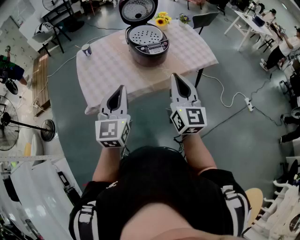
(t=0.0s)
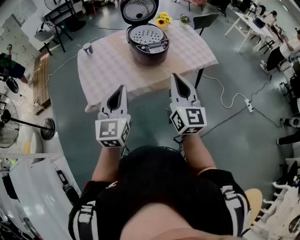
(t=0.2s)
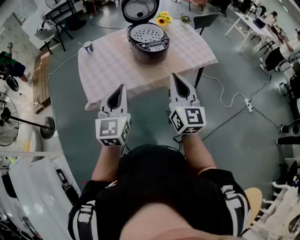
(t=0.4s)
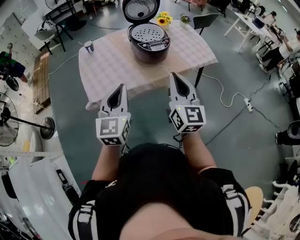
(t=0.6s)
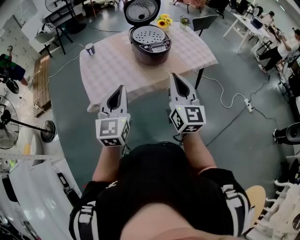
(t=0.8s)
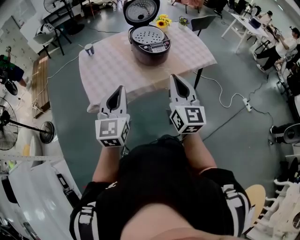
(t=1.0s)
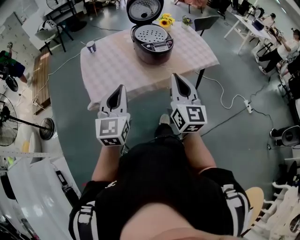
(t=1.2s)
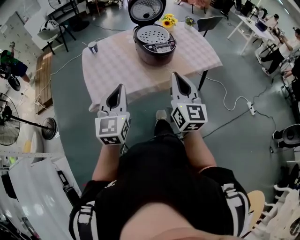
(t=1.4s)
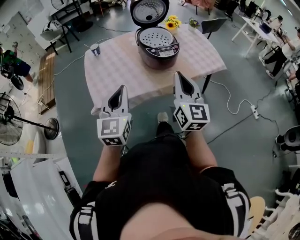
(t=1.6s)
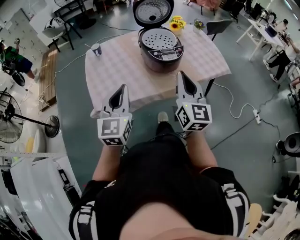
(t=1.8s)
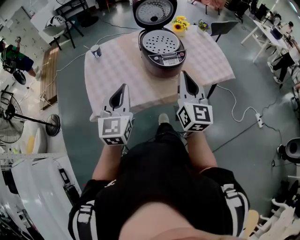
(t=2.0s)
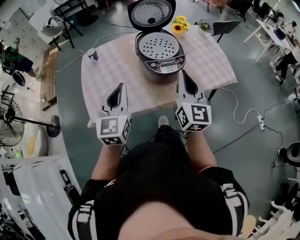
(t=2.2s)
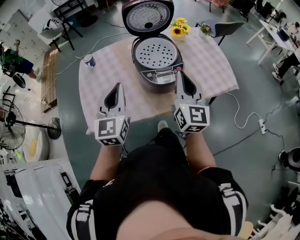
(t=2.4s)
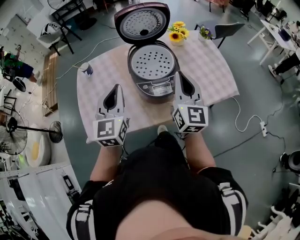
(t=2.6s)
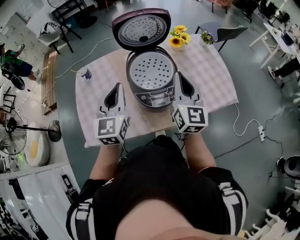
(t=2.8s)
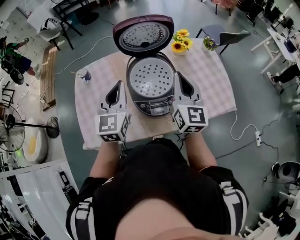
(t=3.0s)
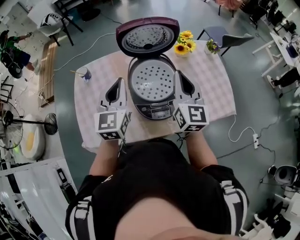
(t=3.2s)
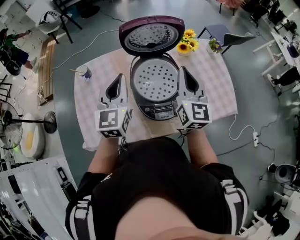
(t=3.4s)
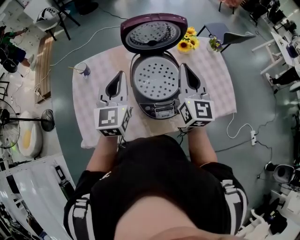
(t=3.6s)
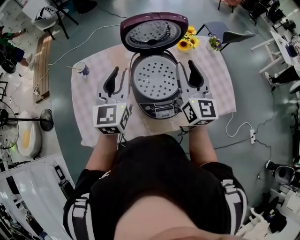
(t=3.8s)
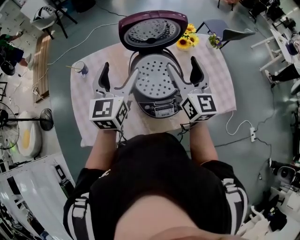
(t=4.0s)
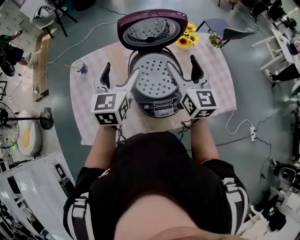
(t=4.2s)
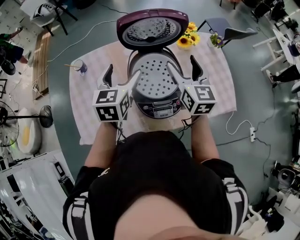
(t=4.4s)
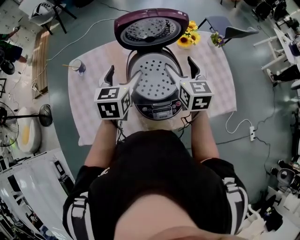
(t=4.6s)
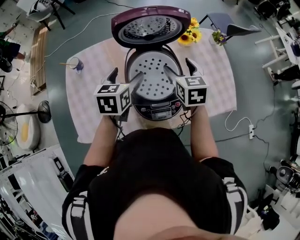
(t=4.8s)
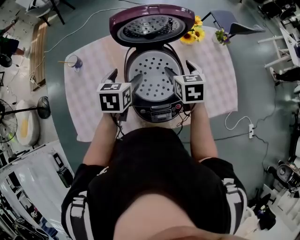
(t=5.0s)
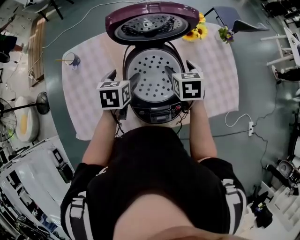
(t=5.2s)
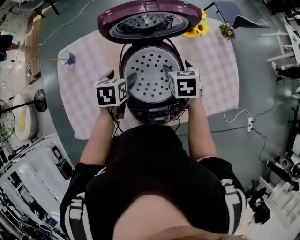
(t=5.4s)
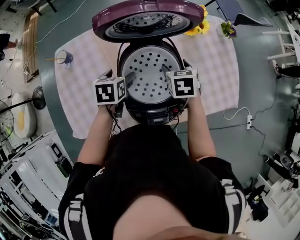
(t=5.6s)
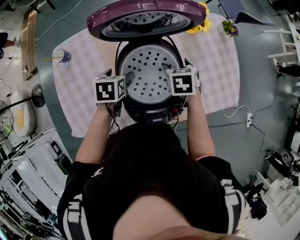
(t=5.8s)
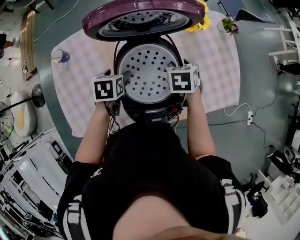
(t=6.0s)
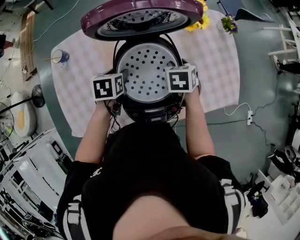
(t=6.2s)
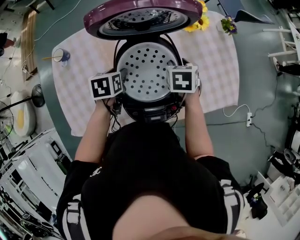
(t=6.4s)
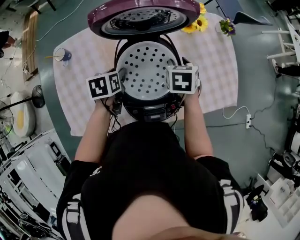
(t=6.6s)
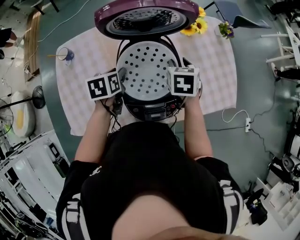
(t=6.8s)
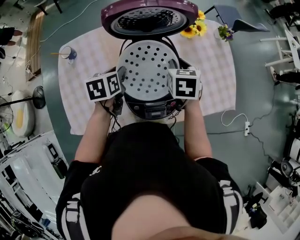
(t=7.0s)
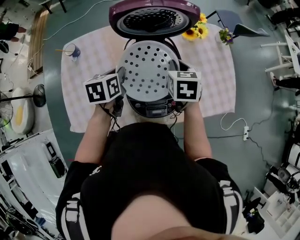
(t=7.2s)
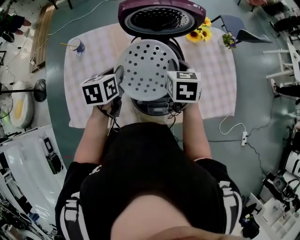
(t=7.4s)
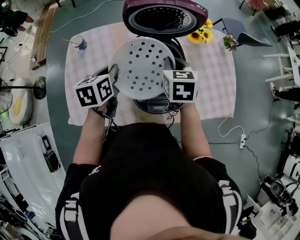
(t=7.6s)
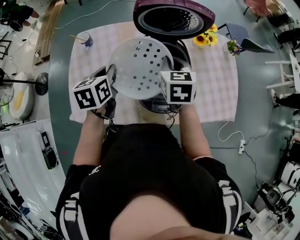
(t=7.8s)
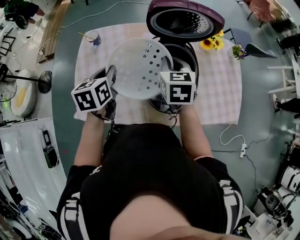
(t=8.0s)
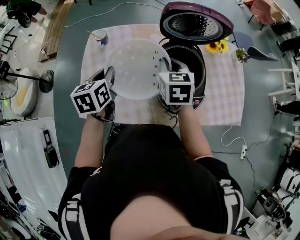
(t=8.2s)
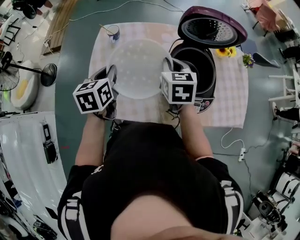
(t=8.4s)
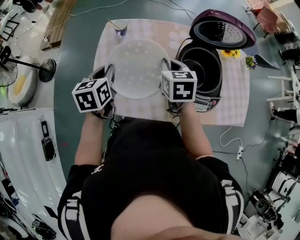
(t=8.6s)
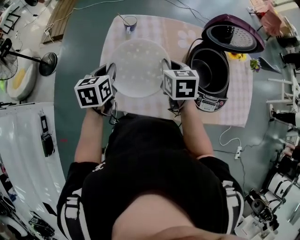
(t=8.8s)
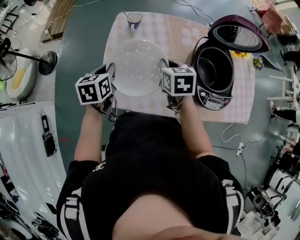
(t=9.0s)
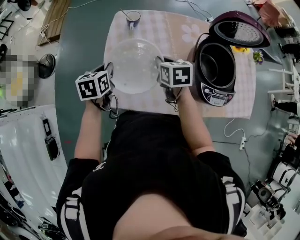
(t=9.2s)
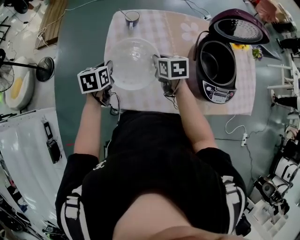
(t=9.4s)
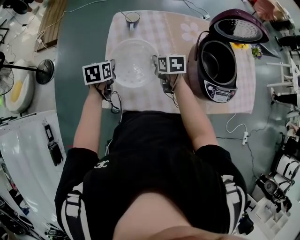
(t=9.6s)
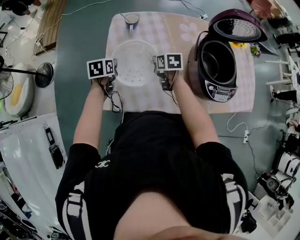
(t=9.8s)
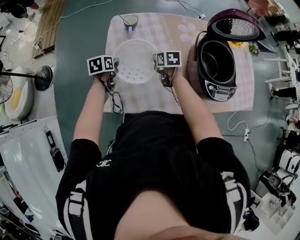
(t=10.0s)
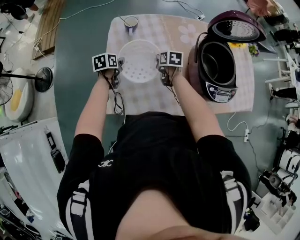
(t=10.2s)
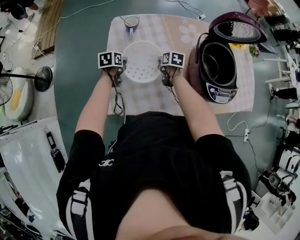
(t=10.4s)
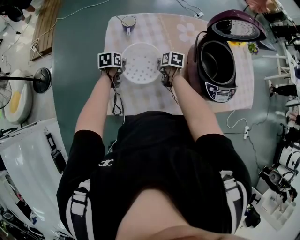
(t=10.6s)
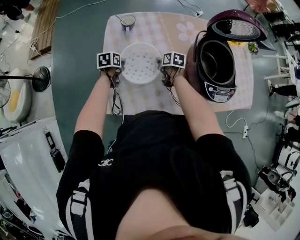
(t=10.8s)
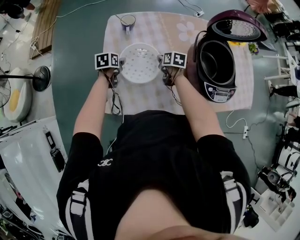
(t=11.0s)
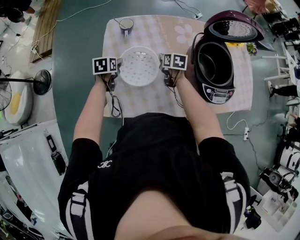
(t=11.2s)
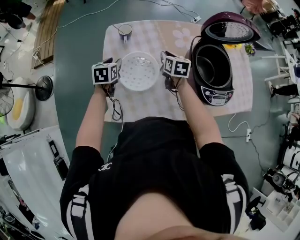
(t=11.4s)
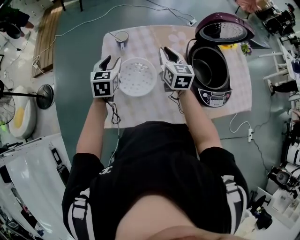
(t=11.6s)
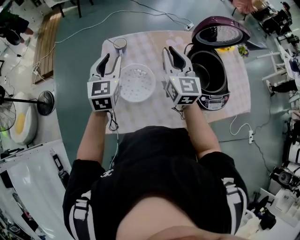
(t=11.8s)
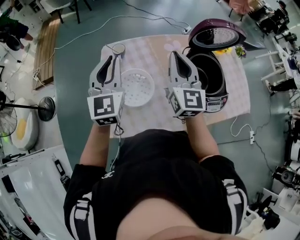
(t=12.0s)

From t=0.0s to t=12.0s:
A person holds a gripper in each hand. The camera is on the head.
From t=0.0s to t=1.6s: The grippers move only a little.
From t=1.6s to t=3.0s: The two grippers travel together, forward, roughly 40 cm.
From t=3.0s to t=4.4s: Both grippers travel together forward, about 10 cm. The right gripper opens up. The left gripper opens up.
From t=4.4s to t=6.0s: Both grippers travel together downward, approximately 20 cm. The right gripper tips its fingers downward by approximately 50 degrees, and closes up, while the left gripper tips its fingers downward by about 40 degrees.
From t=6.0s to t=7.6s: The right gripper shifts some 15 cm upward, to the left and backward, rotates roughly 20 degrees, and closes its fingers. The left gripper heads upward and backward, covering some 15 cm, changes its angle by approximately 30 degrees, and closes its fingers.
From t=7.6s to t=9.0s: The two grippers go some 35 cm to the left.
From t=9.0s to t=10.4s: The two grippers go about 20 cm downward and forward. The right gripper swivels about 30 degrees. Meanwhile the left gripper rotates roughly 20 degrees.
From t=10.4s to t=12.0s: Both grippers travel together upward, roughly 35 cm. The left gripper tilts its fingers roughly 50 degrees upward. The right gripper angles its fingers upward, by roughly 60 degrees.

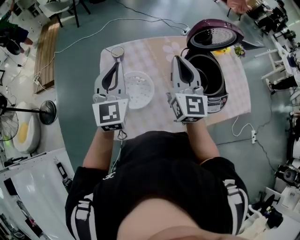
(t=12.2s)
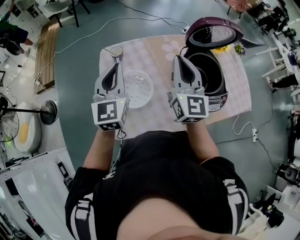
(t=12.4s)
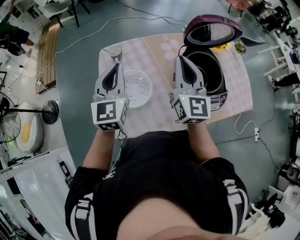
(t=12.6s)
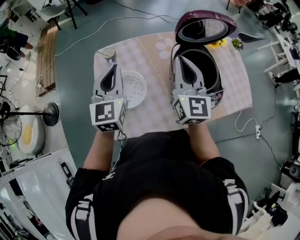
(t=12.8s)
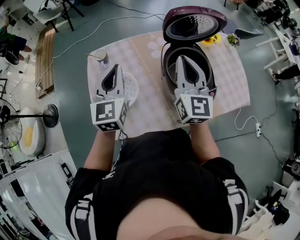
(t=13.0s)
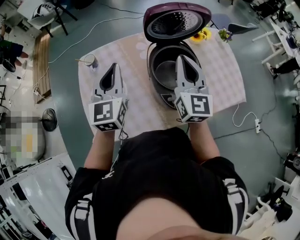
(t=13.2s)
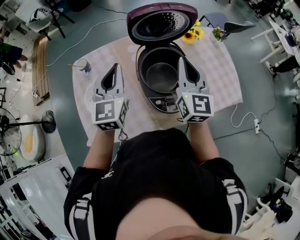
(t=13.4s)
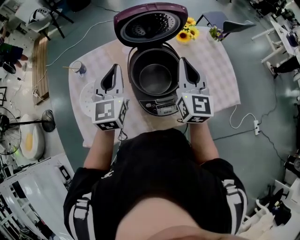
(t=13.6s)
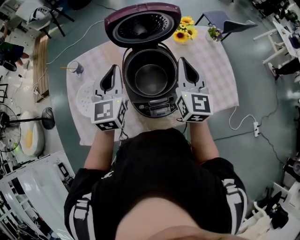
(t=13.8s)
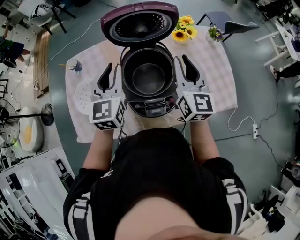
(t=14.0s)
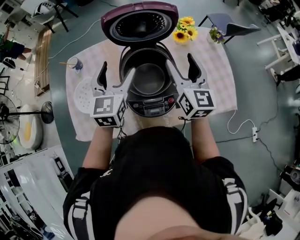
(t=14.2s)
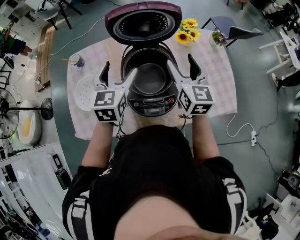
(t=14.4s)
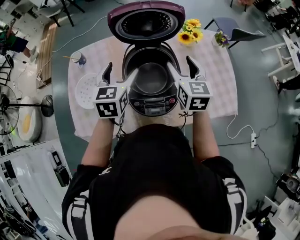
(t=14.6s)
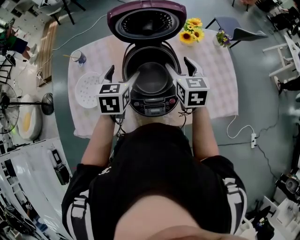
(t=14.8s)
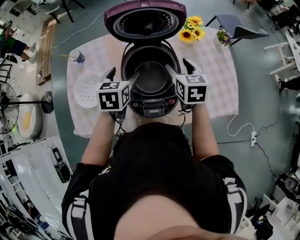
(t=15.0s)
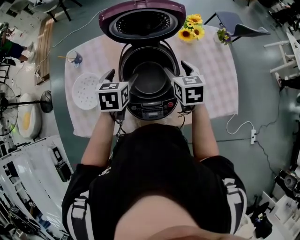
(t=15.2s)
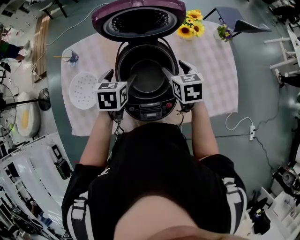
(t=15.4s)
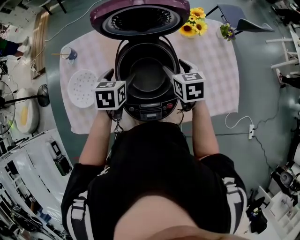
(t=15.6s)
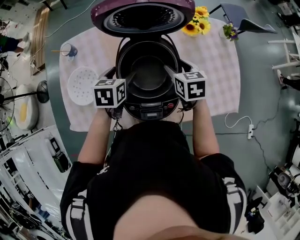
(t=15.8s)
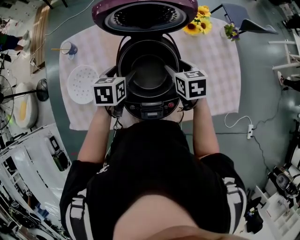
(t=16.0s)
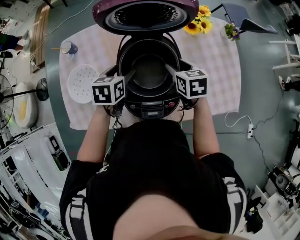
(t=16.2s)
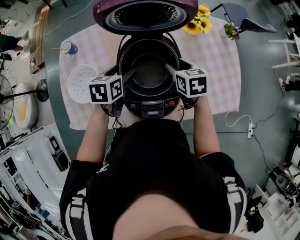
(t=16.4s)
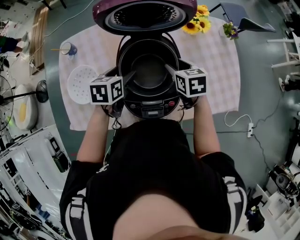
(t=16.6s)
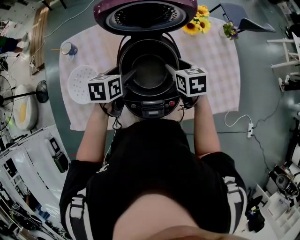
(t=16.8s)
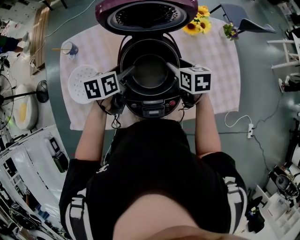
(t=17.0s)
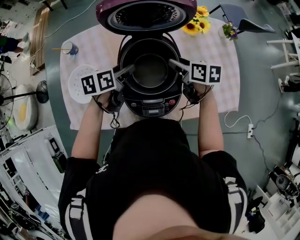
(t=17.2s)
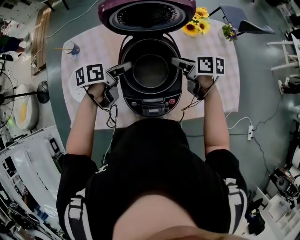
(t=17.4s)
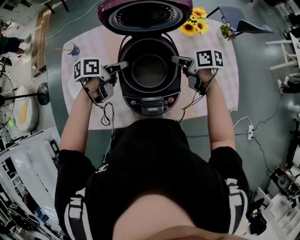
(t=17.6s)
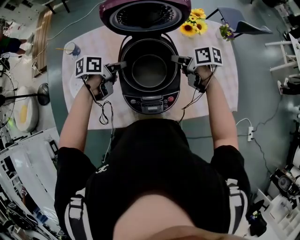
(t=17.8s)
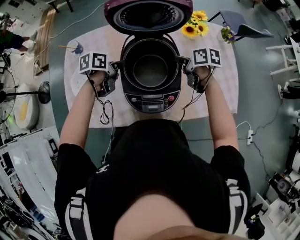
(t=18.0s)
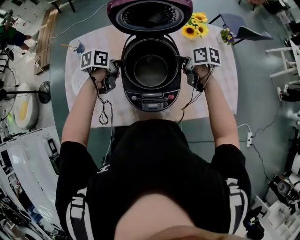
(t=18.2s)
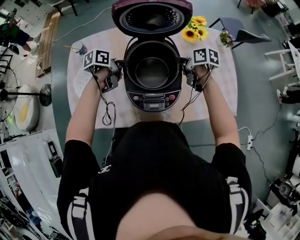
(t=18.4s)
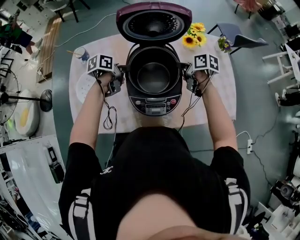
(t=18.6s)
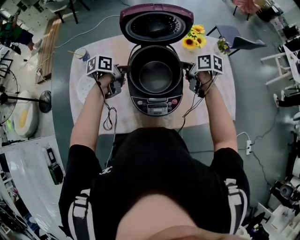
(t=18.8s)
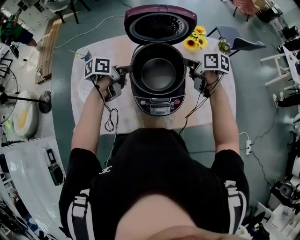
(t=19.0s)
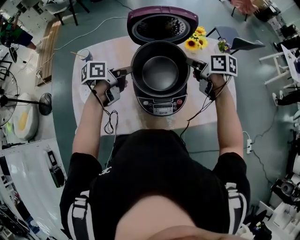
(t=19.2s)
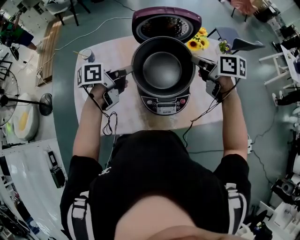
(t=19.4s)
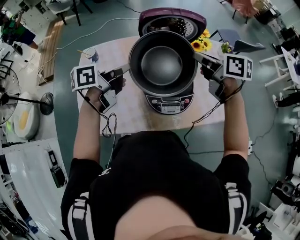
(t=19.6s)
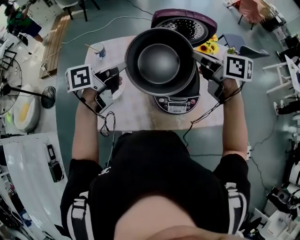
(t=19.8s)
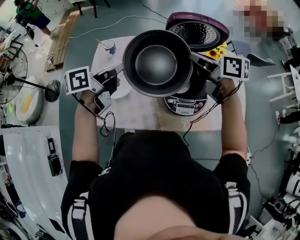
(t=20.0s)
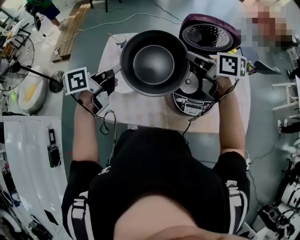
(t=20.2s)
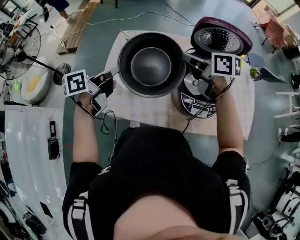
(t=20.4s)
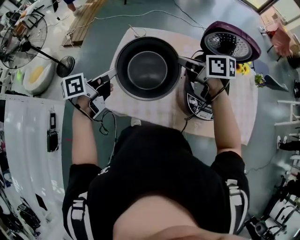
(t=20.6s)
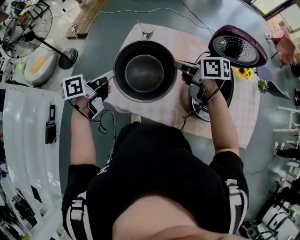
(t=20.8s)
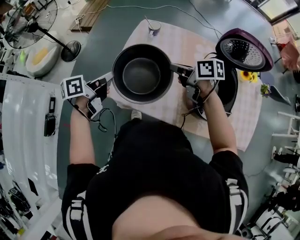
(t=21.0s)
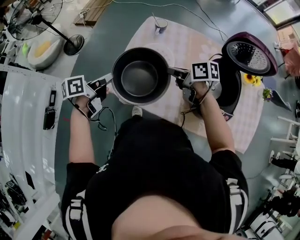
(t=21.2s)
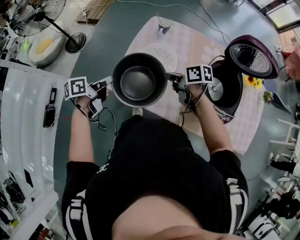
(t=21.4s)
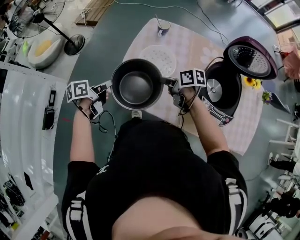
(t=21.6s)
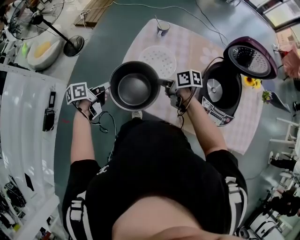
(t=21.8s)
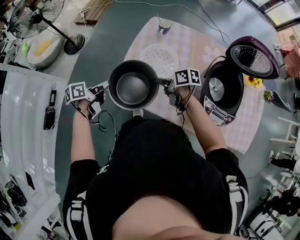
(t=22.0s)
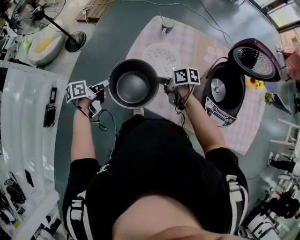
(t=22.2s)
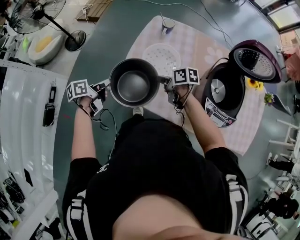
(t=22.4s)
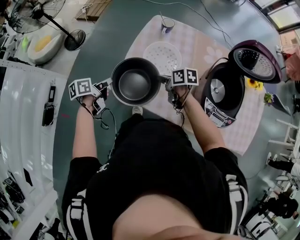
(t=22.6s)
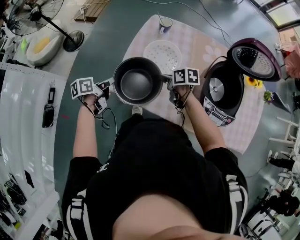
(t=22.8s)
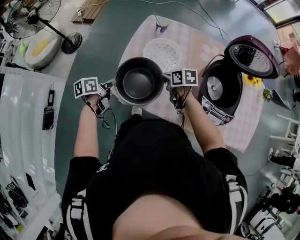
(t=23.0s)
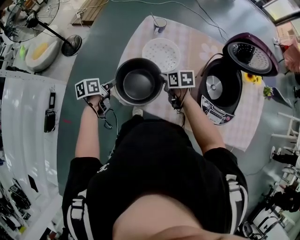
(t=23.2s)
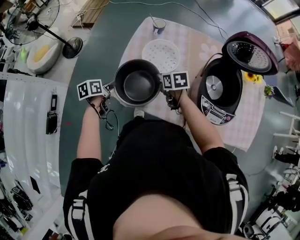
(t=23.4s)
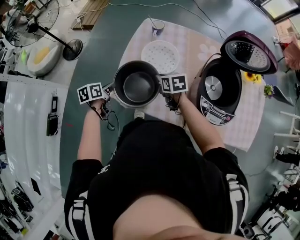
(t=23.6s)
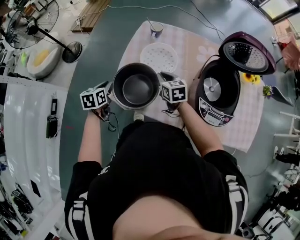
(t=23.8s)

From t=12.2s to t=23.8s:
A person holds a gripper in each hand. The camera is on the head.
From t=12.2s to t=13.6s: The two grippers go some 30 cm to the right.
From t=13.6s to t=15.0s: The right gripper shifts some 15 cm downward and forward, points its fingers some 30 degrees further downward, and opens; the left gripper shifts roughly 15 cm downward and to the right, tips its fingers downward by some 30 degrees, and opens its fingers.
From t=15.0s to t=16.6s: Both grippers move downward, roughly 10 cm.
From t=16.6s to t=18.0s: The left gripper changes its angle by about 30 degrees, and closes. Meanwhile the right gripper changes its angle by some 30 degrees, and closes.
From t=18.0s to t=19.4s: The grippers both shift upward by approximately 15 cm. The left gripper changes its angle by about 30 degrees.
From t=19.4s to t=21.0s: The left gripper goes upward and returns, approximately 5 cm each way, and swivels approximately 30 degrees. The right gripper changes place by about 40 cm, and turns by about 30 degrees.
From t=21.0s to t=22.4s: Both grippers move downward and to the left, some 15 cm.
From t=22.4s to t=23.8s: The right gripper travels to the right by approximately 5 cm, and swivels some 40 degrees. The left gripper turns by roughly 40 degrees.
